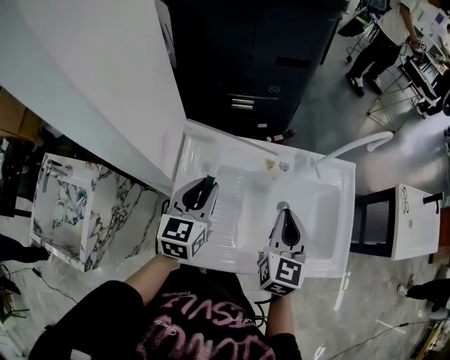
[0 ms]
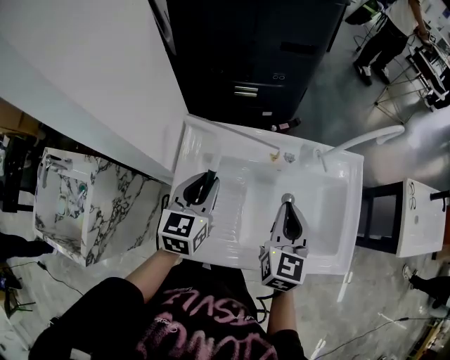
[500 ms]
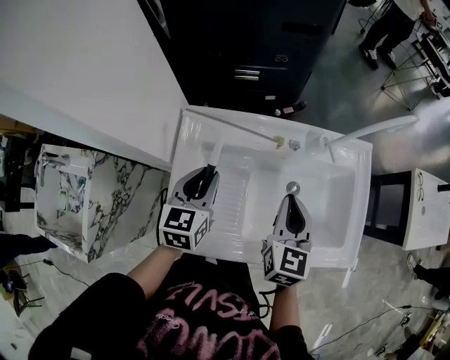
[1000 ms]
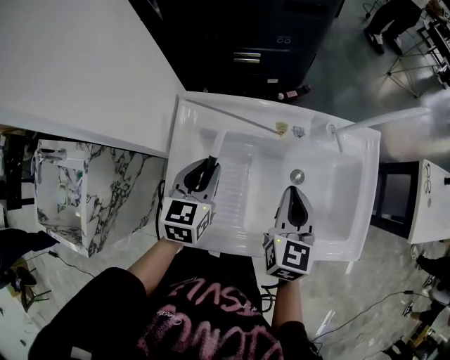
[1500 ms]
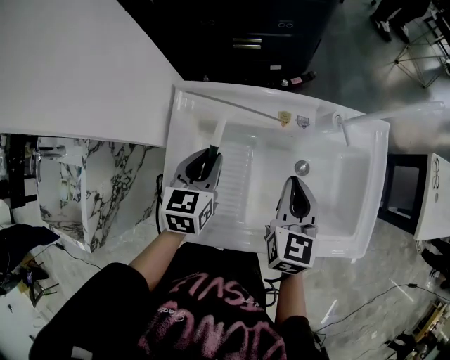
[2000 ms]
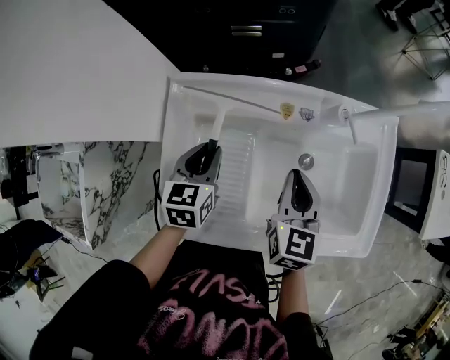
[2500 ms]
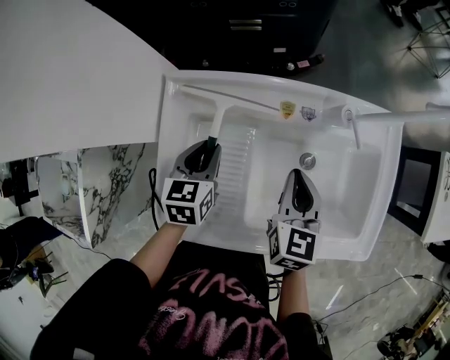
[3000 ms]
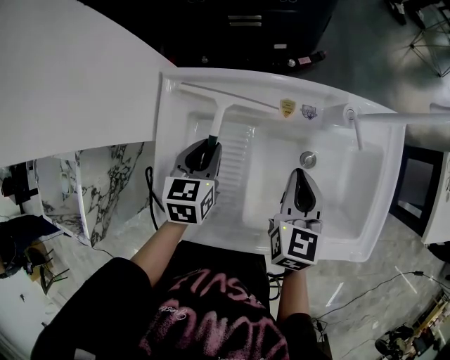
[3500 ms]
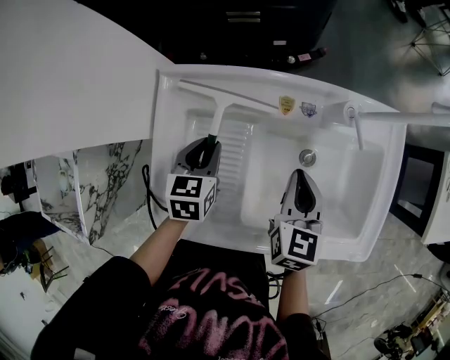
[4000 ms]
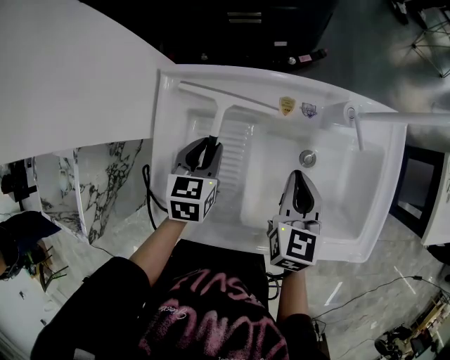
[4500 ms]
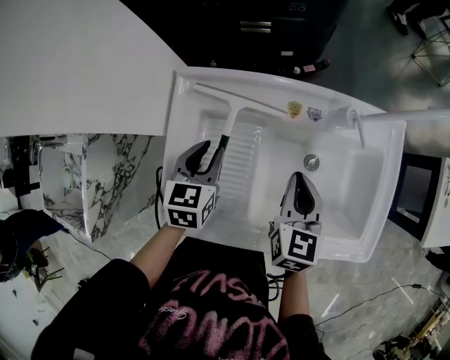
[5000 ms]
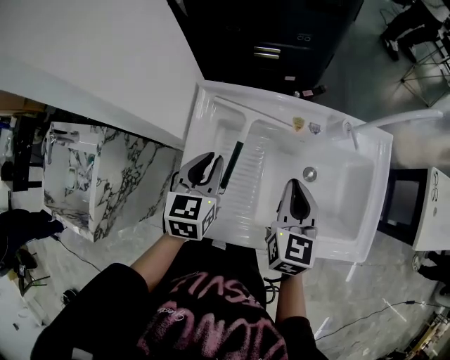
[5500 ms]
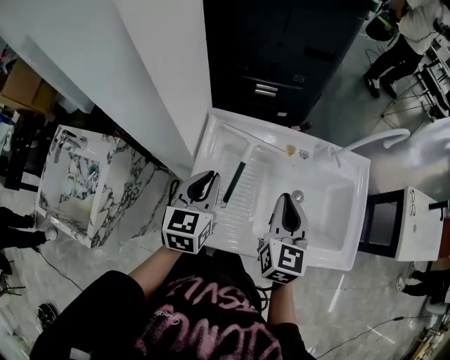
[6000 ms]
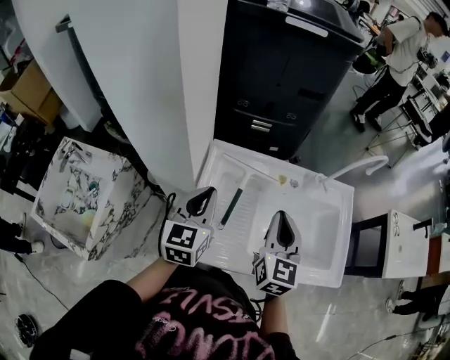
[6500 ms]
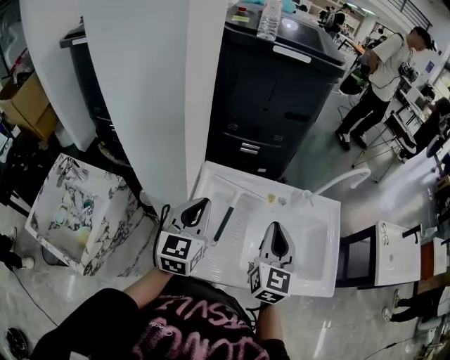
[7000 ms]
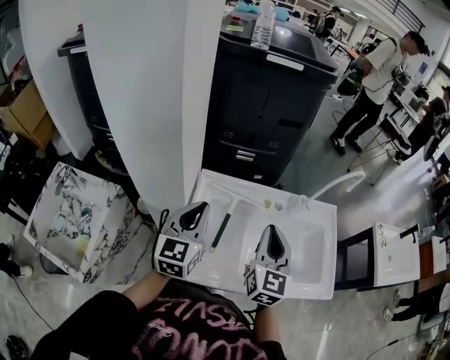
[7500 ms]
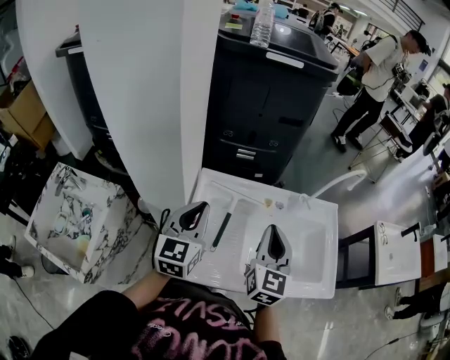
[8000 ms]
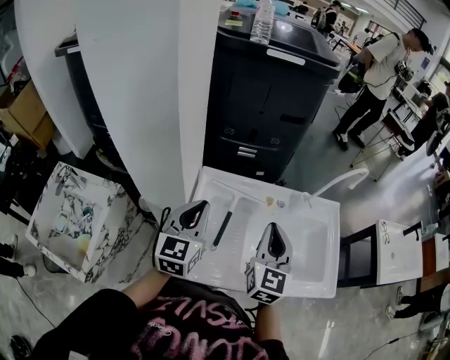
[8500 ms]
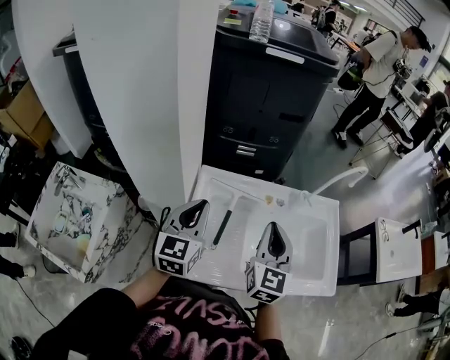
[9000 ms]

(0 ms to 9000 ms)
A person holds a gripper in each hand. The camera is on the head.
0 ms - 2000 ms: Both grippers move downward, approximately 10 cm.
2000 ms - 4500 ms: The two grippers go some 5 cm downward.
4500 ms - 7000 ms: The right gripper goes approximately 25 cm upward and to the left, and rotates roughly 30 degrees; the left gripper heads upward, covering roughly 25 cm, angles its fingers upward, by approximately 40 degrees, and closes its fingers.
7000 ms - 9000 ms: The two grippers keep their place.

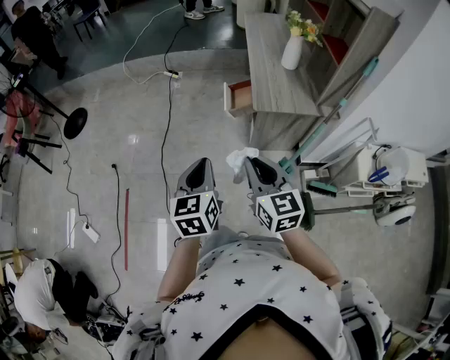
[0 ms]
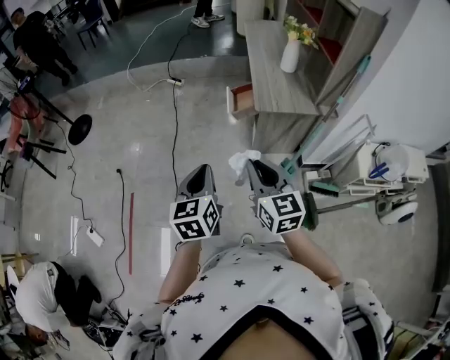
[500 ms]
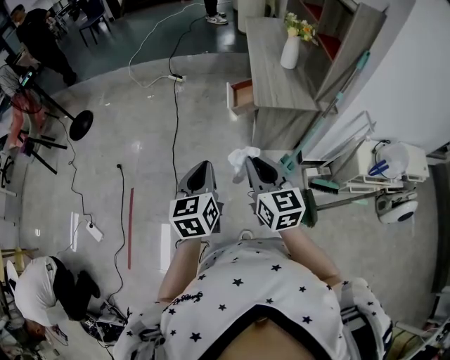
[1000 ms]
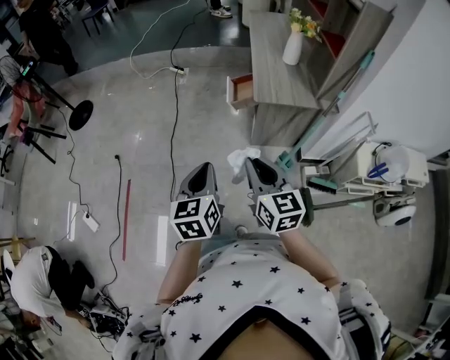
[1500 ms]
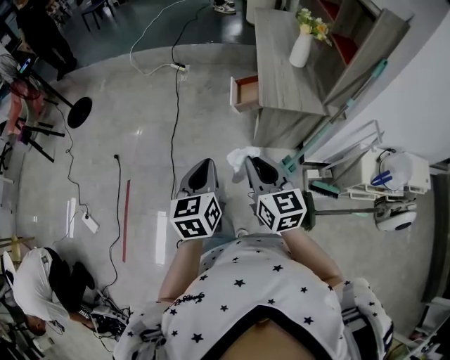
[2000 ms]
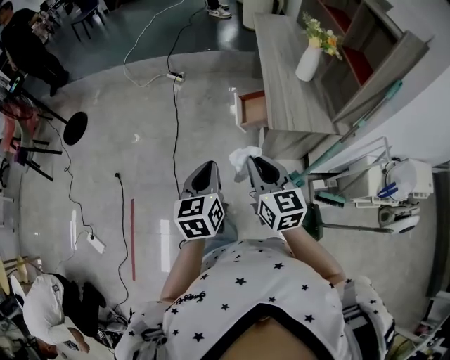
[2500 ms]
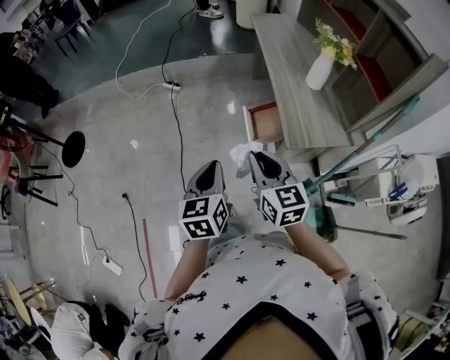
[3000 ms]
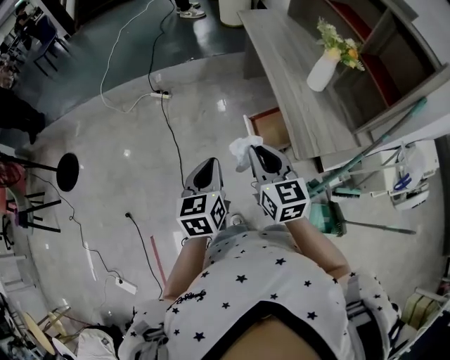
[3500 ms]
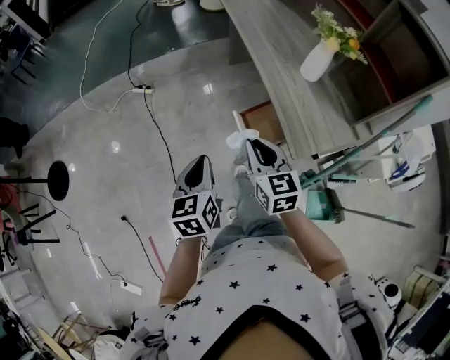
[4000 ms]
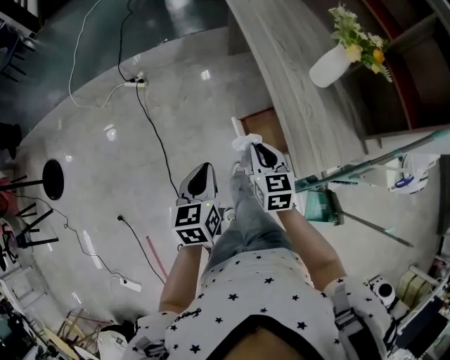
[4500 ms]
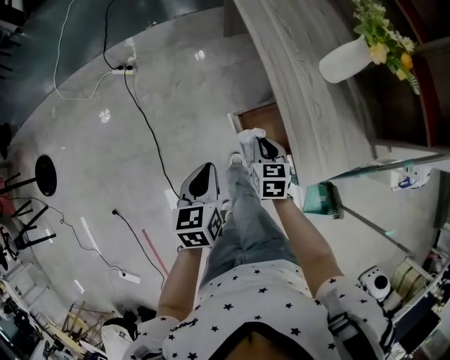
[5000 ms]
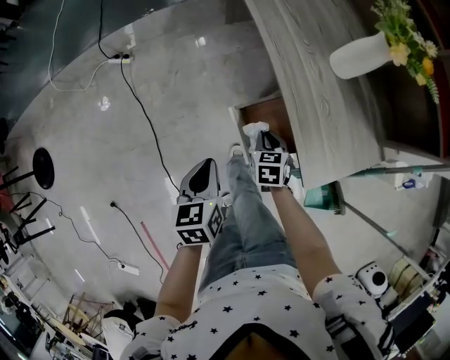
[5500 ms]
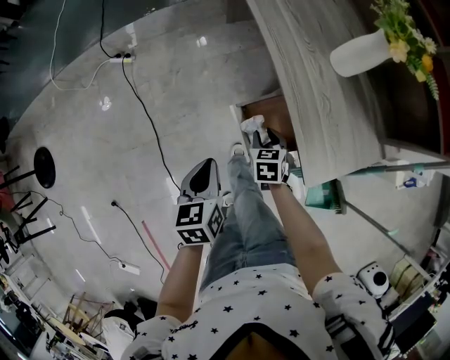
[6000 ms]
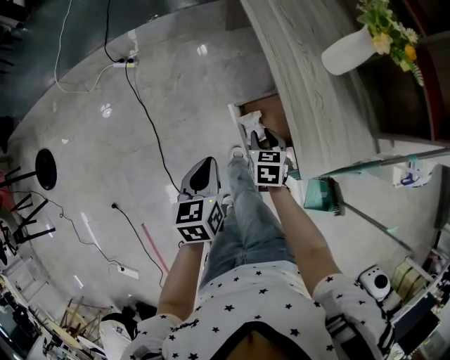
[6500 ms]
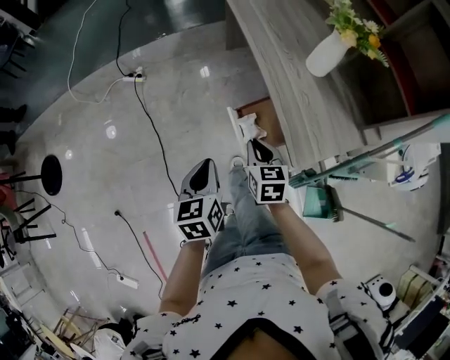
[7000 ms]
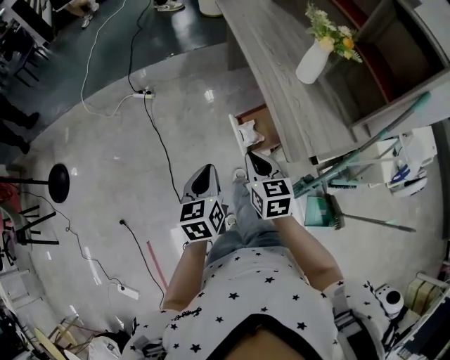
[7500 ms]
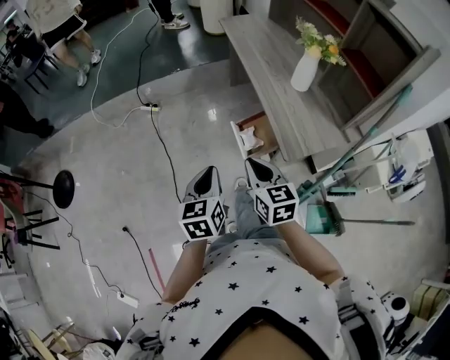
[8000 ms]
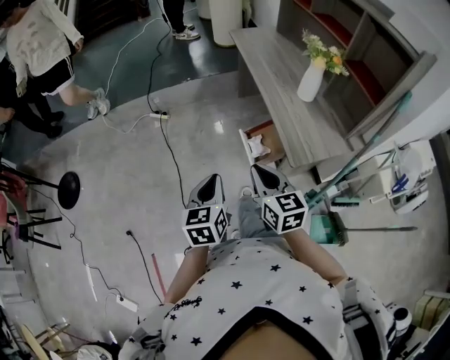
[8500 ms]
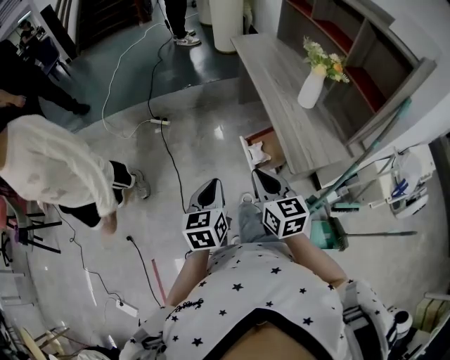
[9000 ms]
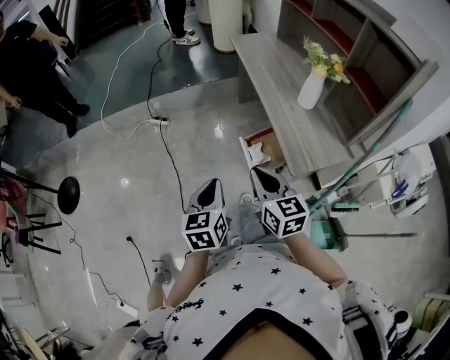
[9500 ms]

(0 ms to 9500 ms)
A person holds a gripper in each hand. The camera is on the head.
0 ms - 2000 ms: The left gripper goes backward and returns, some 10 cm each way.
2000 ms - 4000 ms: Both grippers are carried forward, some 40 cm. The right gripper changes its angle by approximately 20 degrees.
4000 ms - 5500 ms: The left gripper shifts approximately 20 cm downward and forward. Meanwhile the right gripper travels downward and forward by approximately 35 cm, and angles its fingers downward, by some 30 degrees.
5500 ms - 7500 ms: The right gripper is displaced upward and backward by roughly 30 cm, changes its angle by about 30 degrees, and opens and closes again. The left gripper goes about 20 cm backward and upward.
7500 ms - 9500 ms: The left gripper heads upward, covering roughly 5 cm. Meanwhile the right gripper travels upward and backward by about 10 cm.

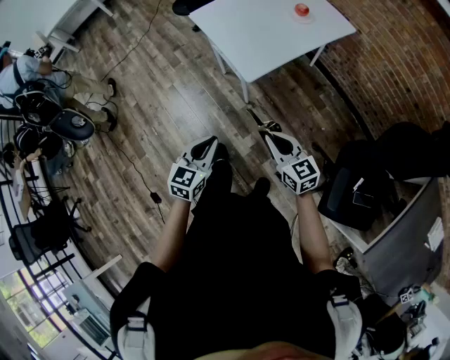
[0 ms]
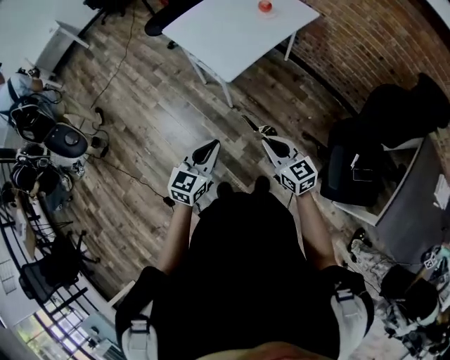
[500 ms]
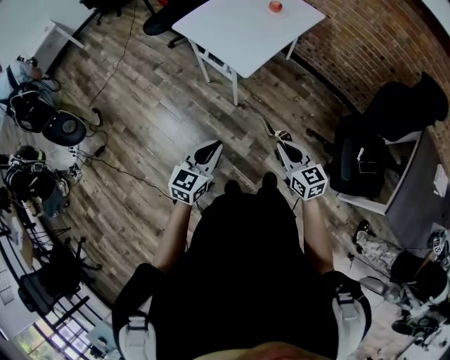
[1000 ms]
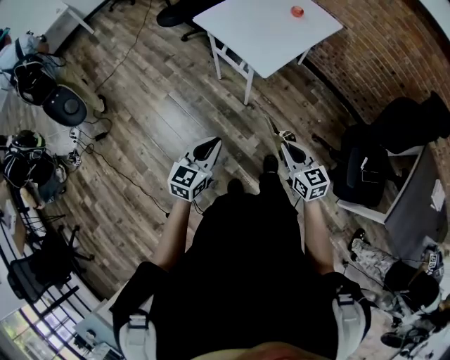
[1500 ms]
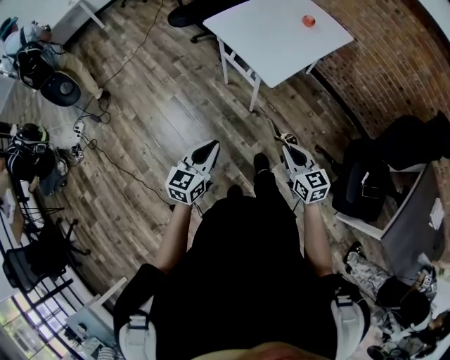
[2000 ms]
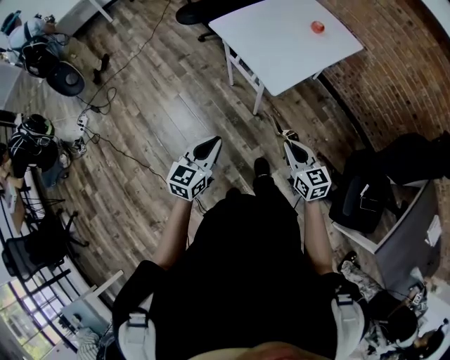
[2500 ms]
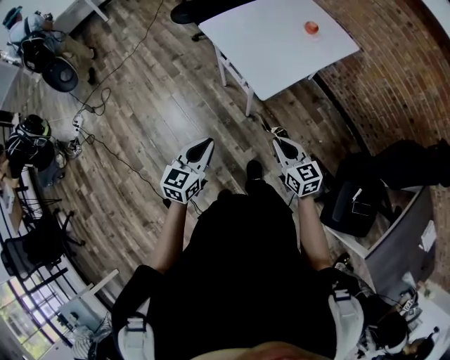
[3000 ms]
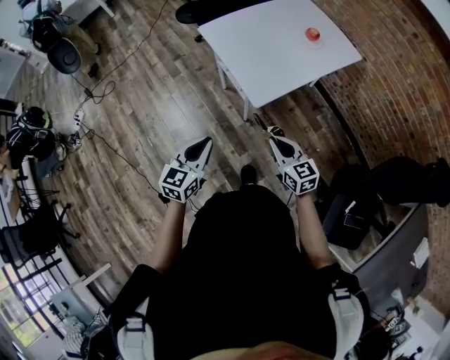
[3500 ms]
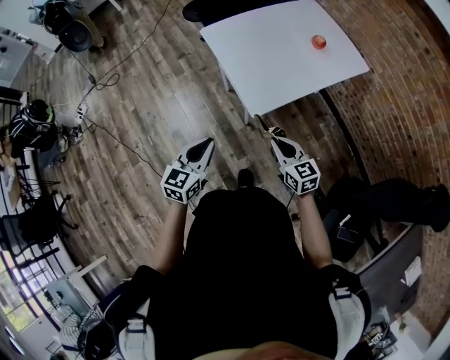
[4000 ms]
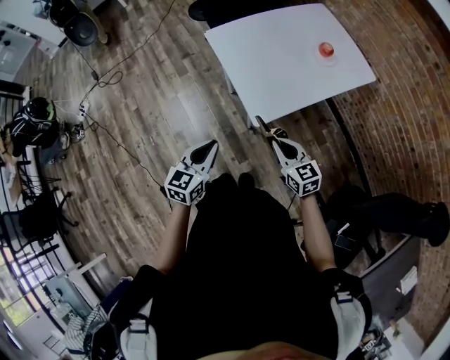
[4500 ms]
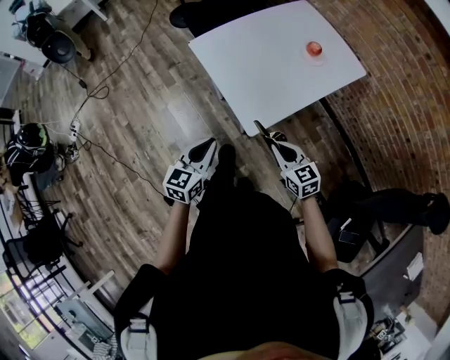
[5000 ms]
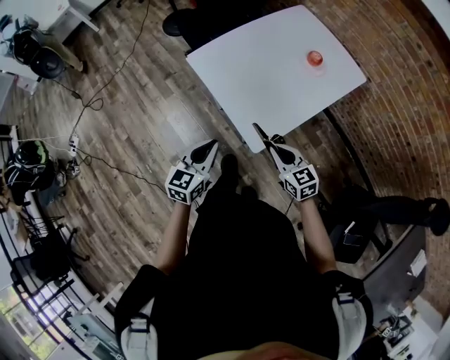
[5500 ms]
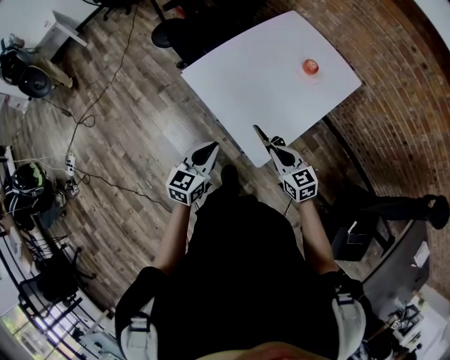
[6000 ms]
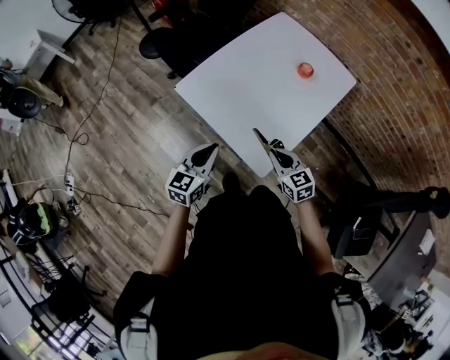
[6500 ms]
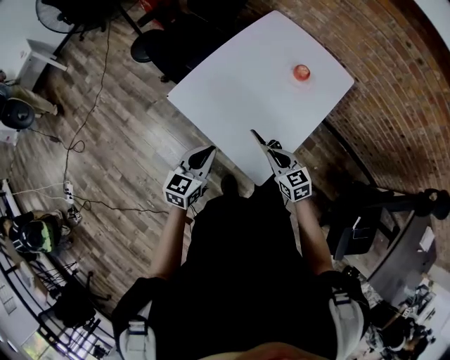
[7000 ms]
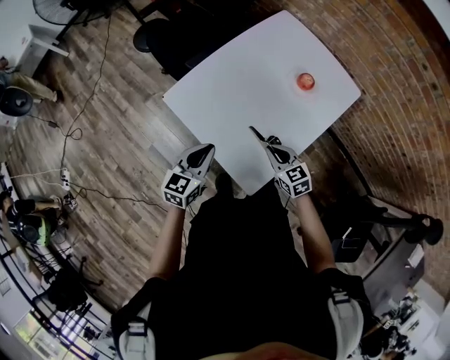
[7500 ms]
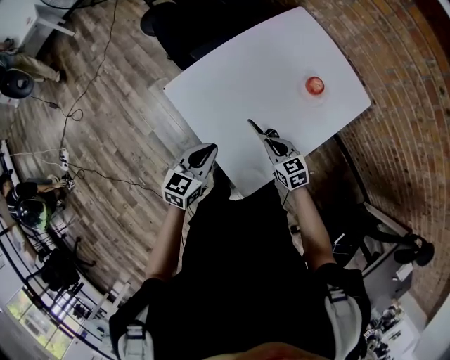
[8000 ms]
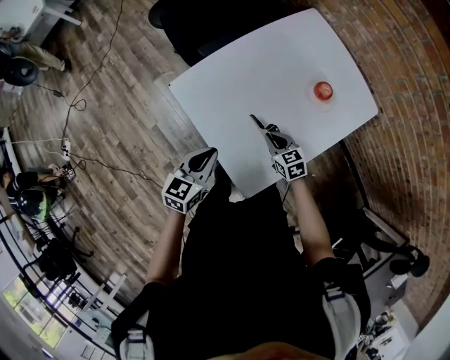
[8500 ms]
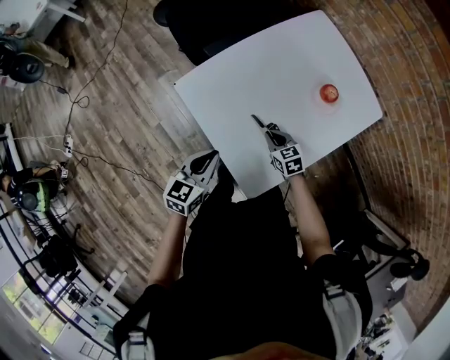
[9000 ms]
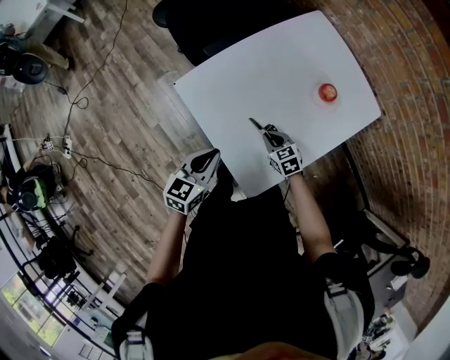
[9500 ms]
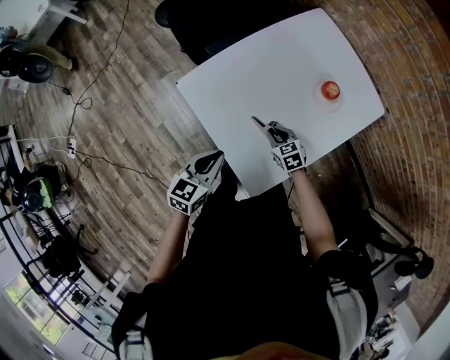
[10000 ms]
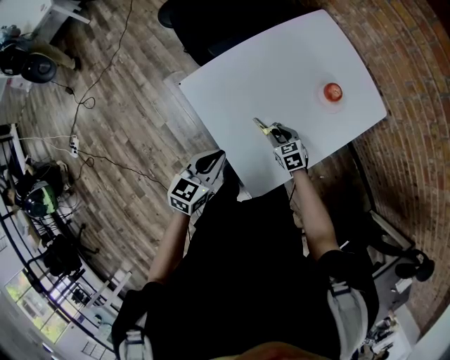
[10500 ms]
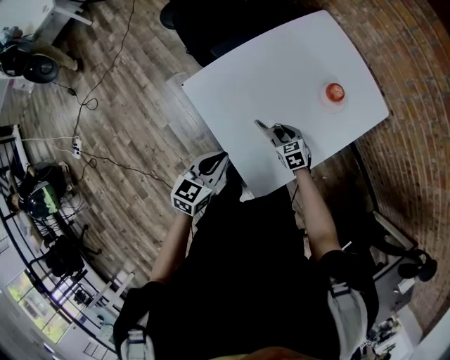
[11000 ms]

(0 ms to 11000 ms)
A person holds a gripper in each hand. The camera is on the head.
0 ms - 2000 ms: The right gripper shifts some 10 cm to the left and backward, while the left gripper moves to the left, some 15 cm.
2000 ms - 3500 ms: The grippers both shift forward and to the right by approximately 15 cm.
3500 ms - 5500 ms: The grippers both shift forward by some 25 cm.
5500 ms - 7500 ms: Both grippers move forward, roughly 20 cm.
7500 ms - 9000 ms: The right gripper travels downward and forward by some 15 cm.
9000 ms - 11000 ms: The right gripper opens up.
